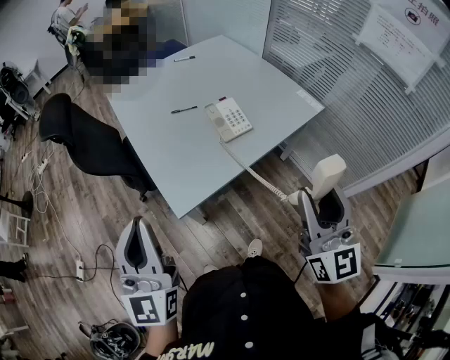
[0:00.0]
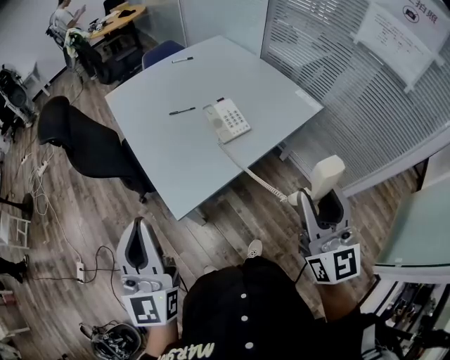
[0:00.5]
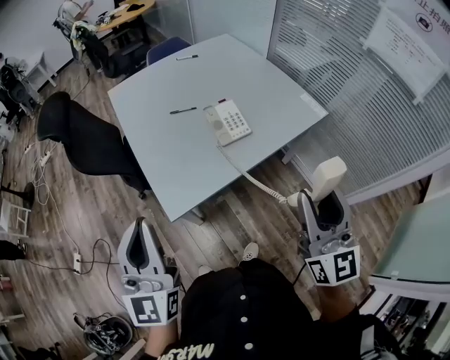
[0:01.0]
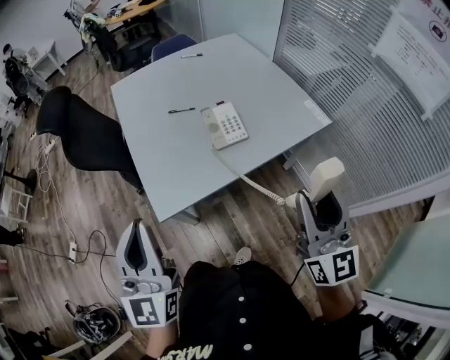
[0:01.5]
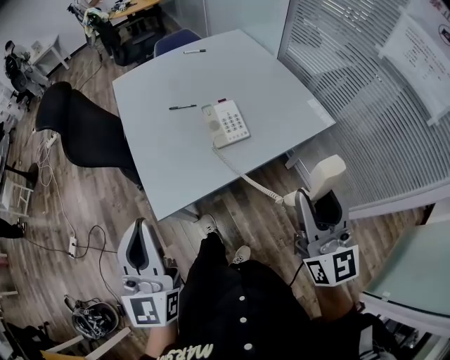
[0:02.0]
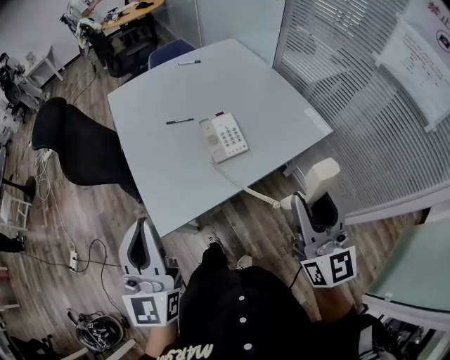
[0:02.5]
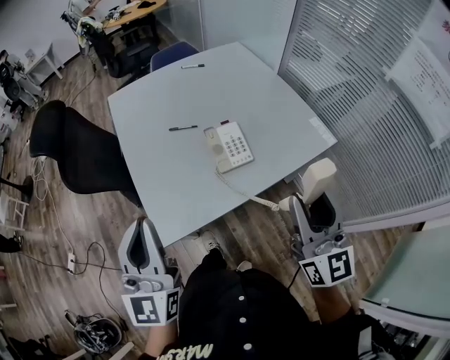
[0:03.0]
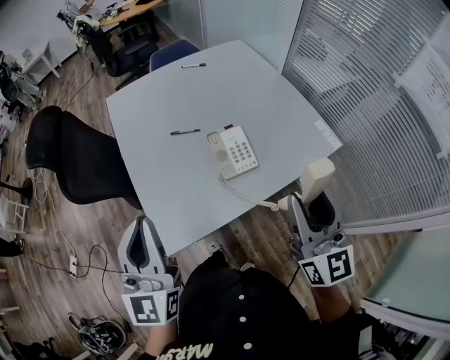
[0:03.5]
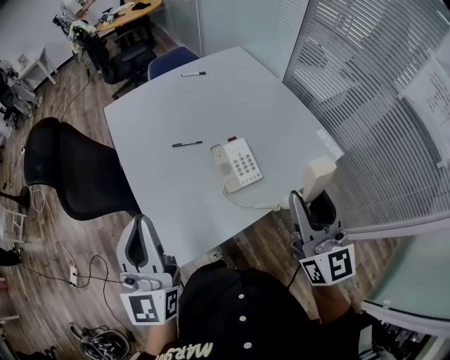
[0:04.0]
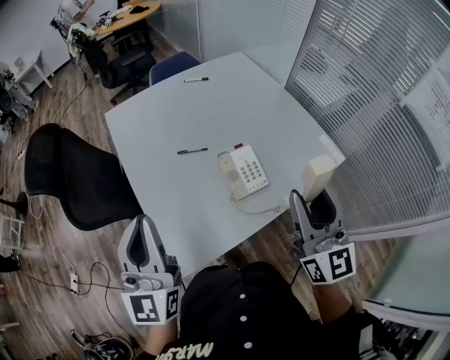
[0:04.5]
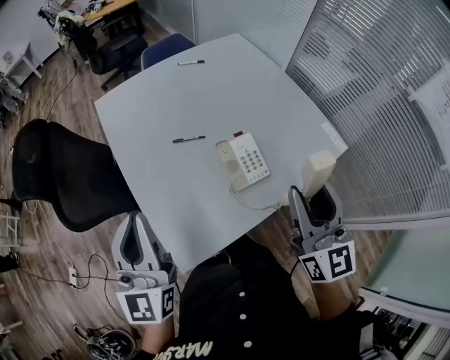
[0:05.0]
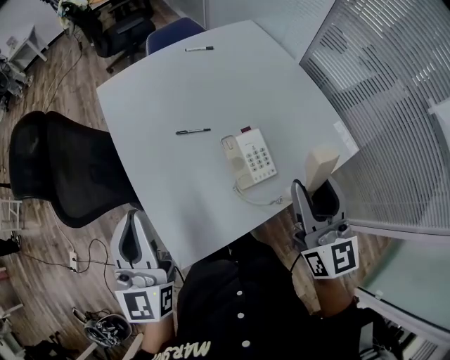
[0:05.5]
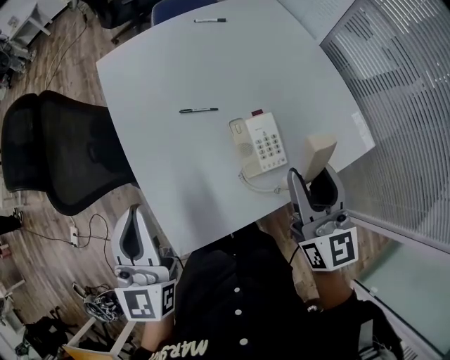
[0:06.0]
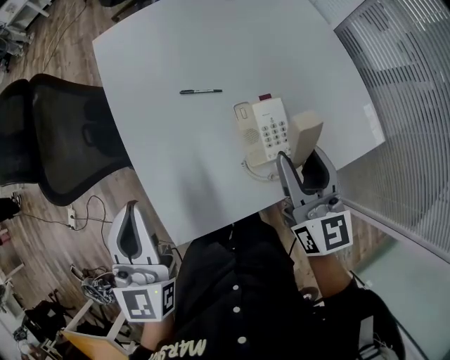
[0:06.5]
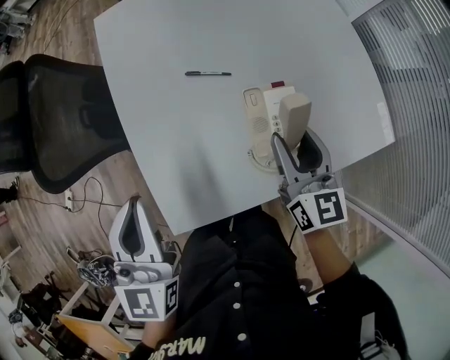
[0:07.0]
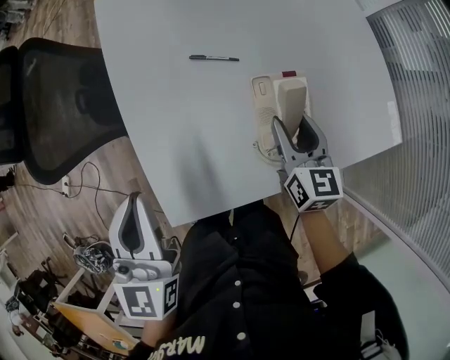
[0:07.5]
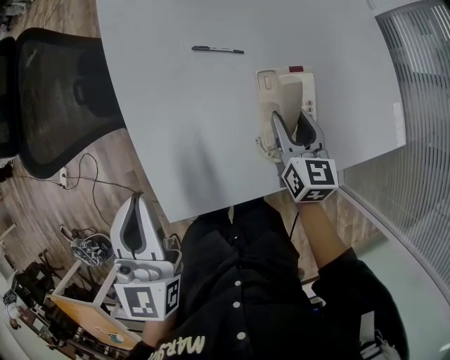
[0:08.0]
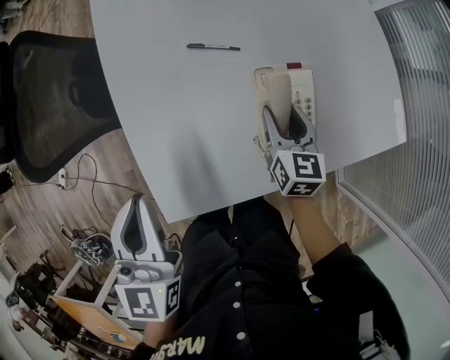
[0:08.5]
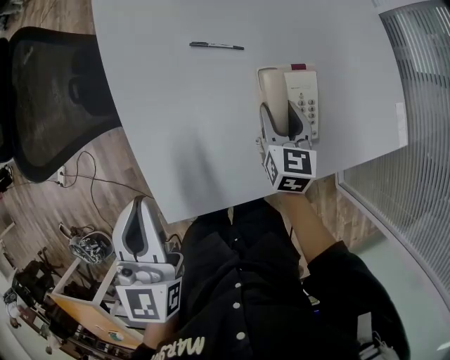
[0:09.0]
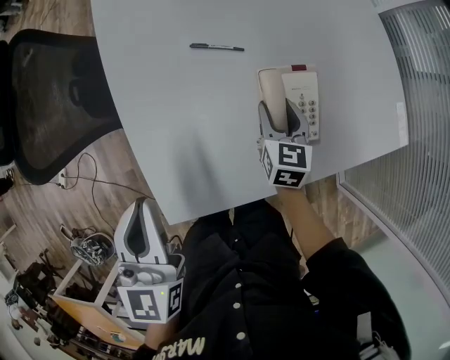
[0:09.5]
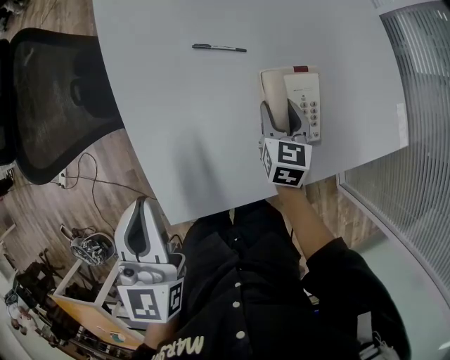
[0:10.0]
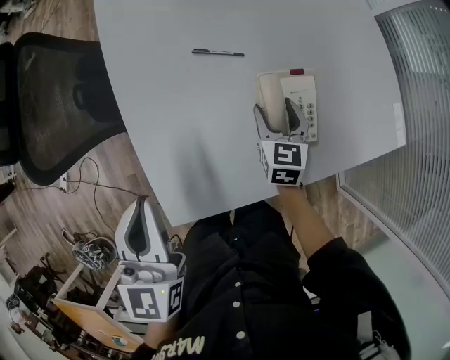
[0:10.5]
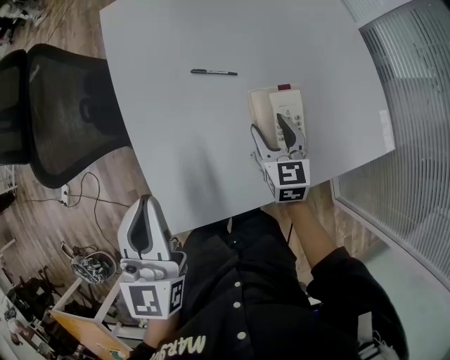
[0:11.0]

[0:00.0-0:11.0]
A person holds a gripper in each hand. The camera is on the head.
0:00.0 to 0:02.0: The left gripper heads to the right, covering about 10 cm, while the right gripper goes roughly 10 cm to the right and forward.
0:02.0 to 0:03.5: The grippers both shift forward by roughly 15 cm.
0:03.5 to 0:05.5: The right gripper goes some 15 cm forward. The left gripper goes some 15 cm forward and to the left.
0:05.5 to 0:07.5: The left gripper moves downward, about 10 cm, and swivels roughly 20 degrees; the right gripper shifts roughly 25 cm downward and forward, and turns by approximately 30 degrees.
0:07.5 to 0:09.0: The right gripper is displaced downward by about 10 cm.
0:09.0 to 0:11.0: The grippers stay close to where they were, moving slightly.

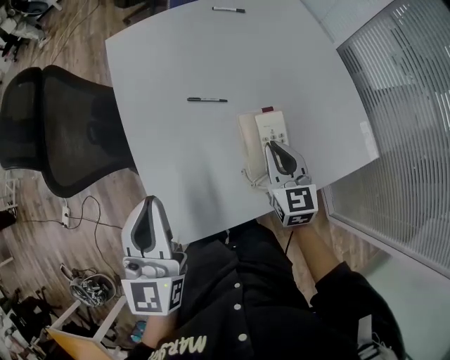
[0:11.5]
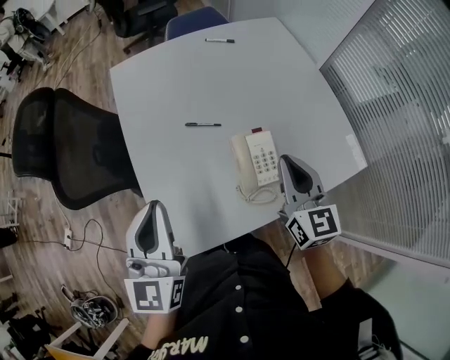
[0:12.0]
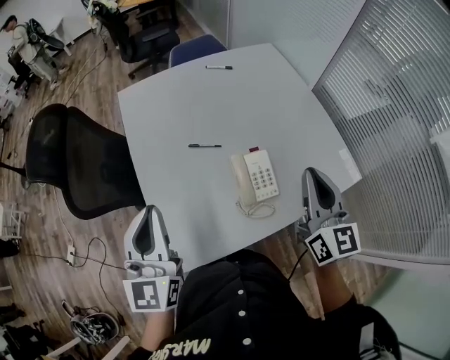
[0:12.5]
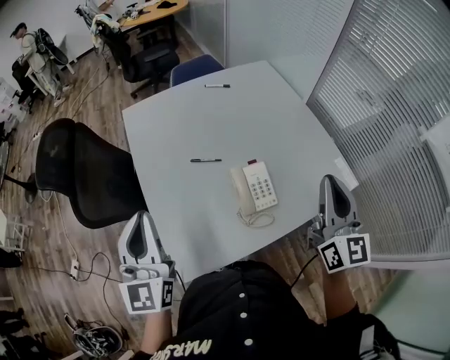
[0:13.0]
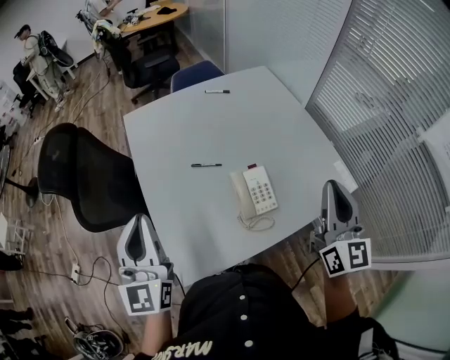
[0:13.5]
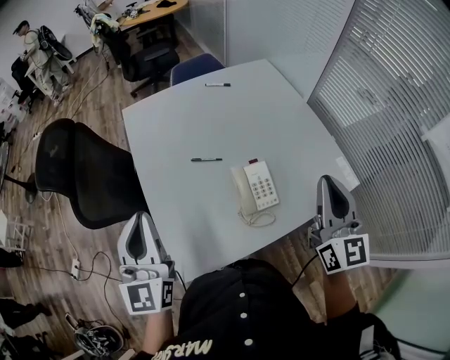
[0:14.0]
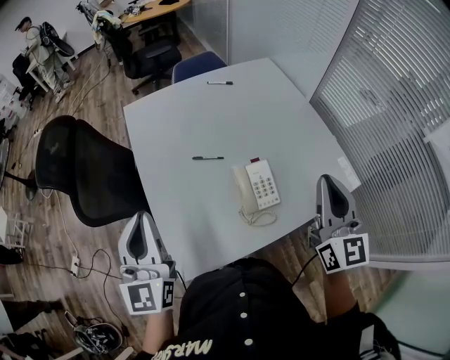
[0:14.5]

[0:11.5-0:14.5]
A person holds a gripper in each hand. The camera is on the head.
0:11.5 to 0:13.0: The left gripper heads upward, covering some 10 cm, while the right gripper is displaced upward and to the right by about 25 cm, and changes its angle by some 30 degrees.
0:13.0 to 0:14.5: The grippers make only small movements.

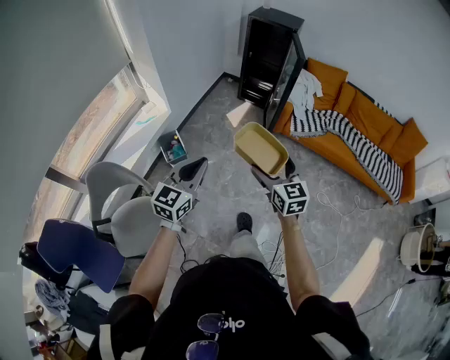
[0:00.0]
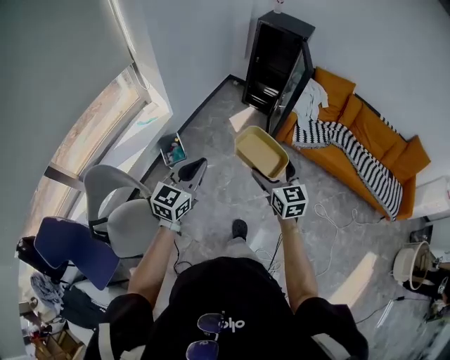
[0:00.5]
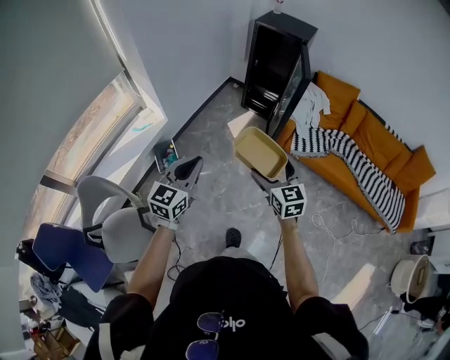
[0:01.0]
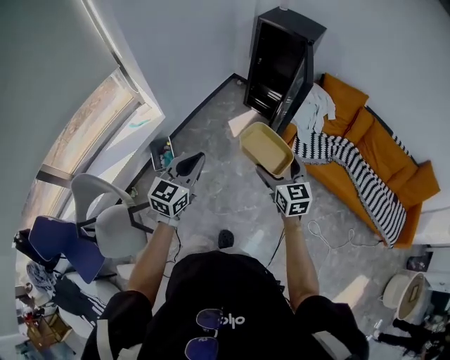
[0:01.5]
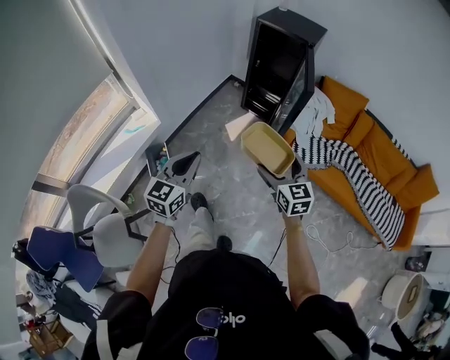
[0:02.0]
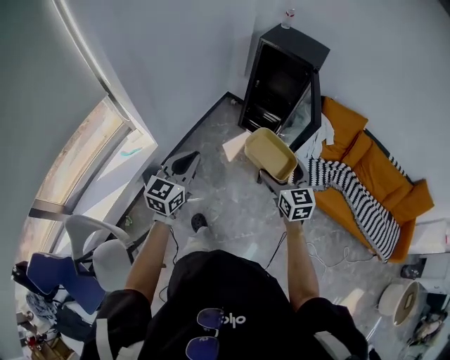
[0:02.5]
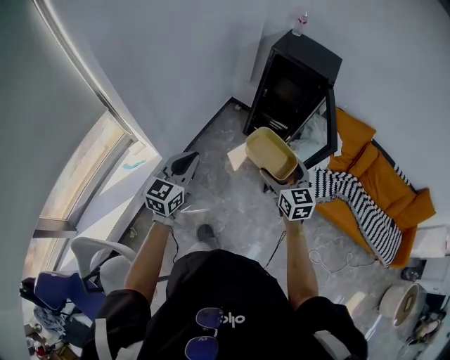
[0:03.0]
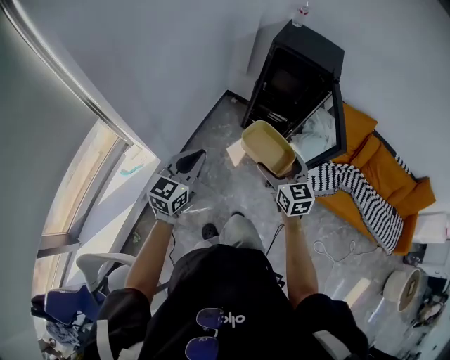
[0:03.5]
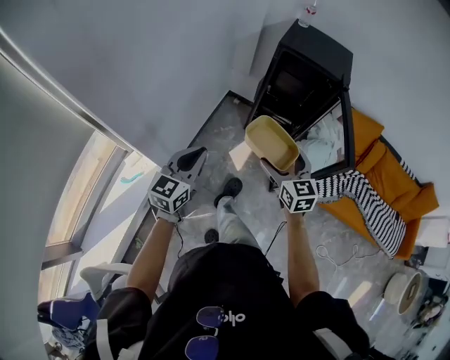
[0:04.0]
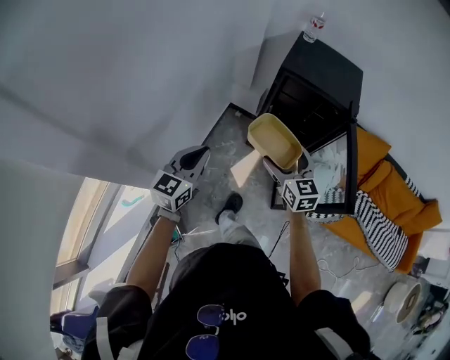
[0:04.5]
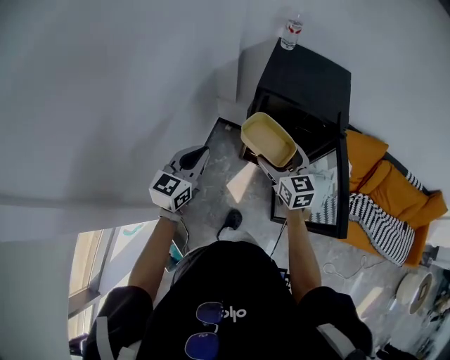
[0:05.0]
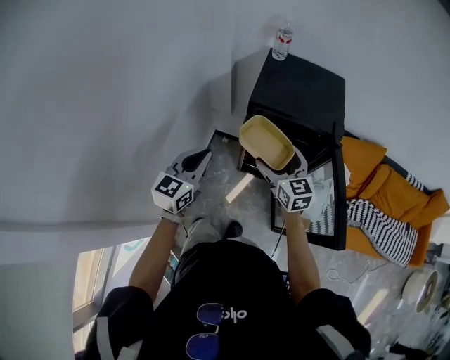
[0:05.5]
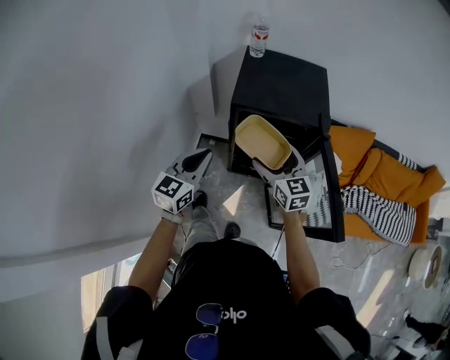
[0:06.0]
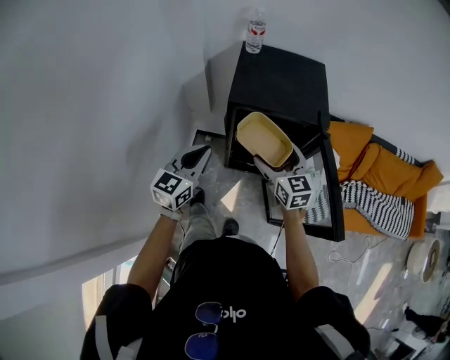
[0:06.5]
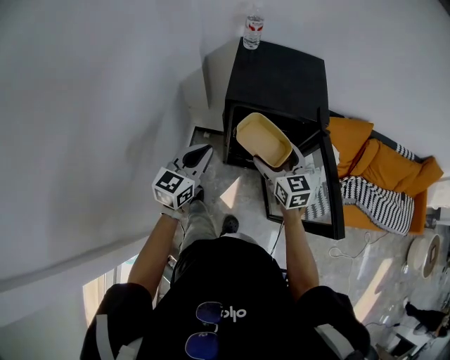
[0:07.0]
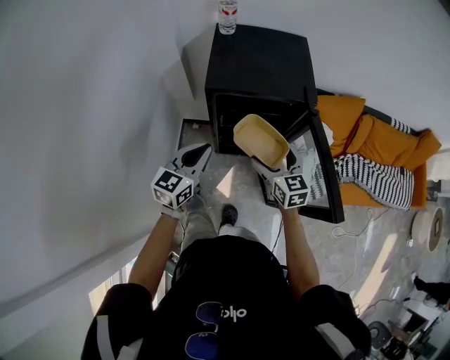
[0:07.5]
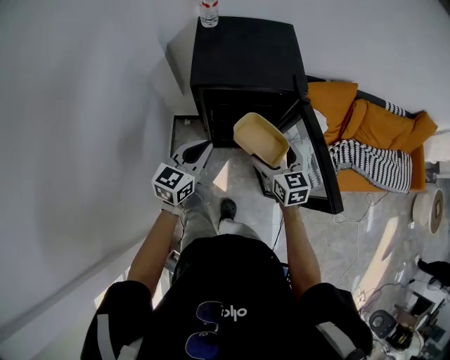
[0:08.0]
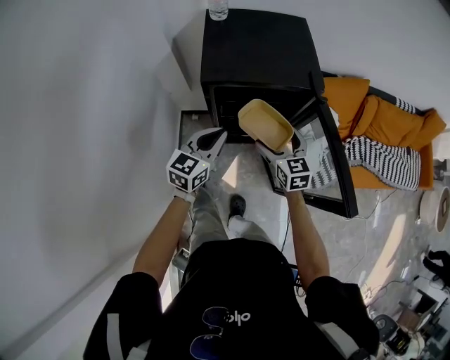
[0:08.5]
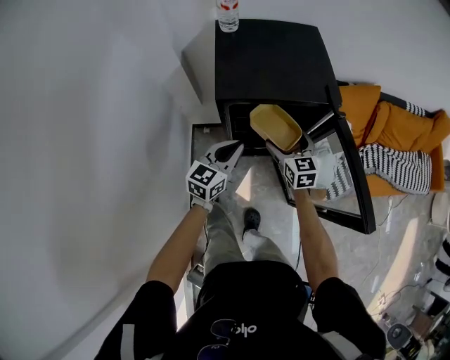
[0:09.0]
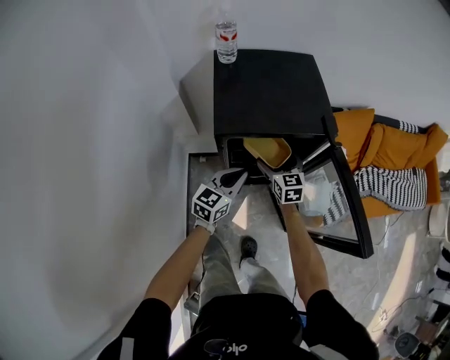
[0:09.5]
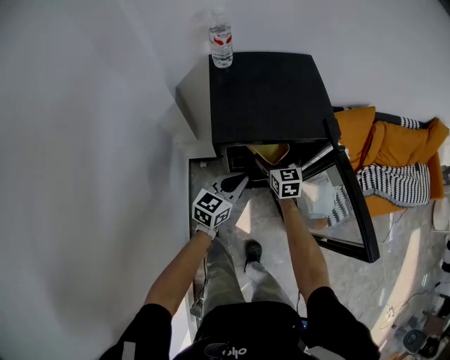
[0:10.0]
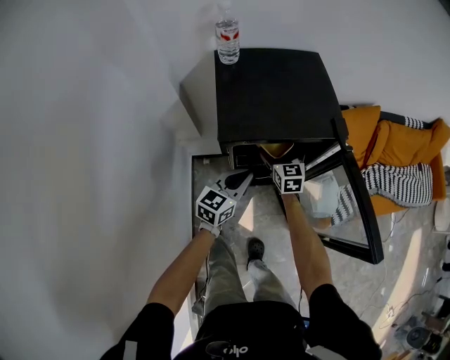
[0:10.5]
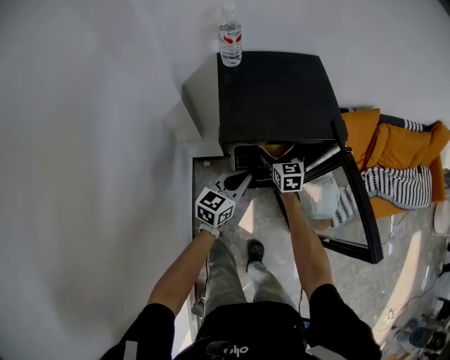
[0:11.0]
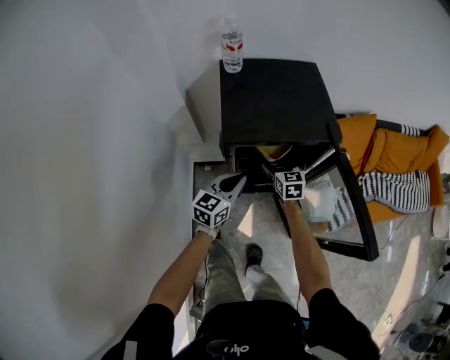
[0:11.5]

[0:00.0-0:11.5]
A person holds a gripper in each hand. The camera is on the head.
0:00.0 to 0:02.0: The left gripper shifts some 30 cm forward. The right gripper travels forward and to the right by some 35 cm.
0:02.0 to 0:04.0: Both grippers are carried forward and to the left, roughly 40 cm.
0:04.0 to 0:06.0: The two grippers go some 40 cm forward.
0:06.0 to 0:07.5: The right gripper goes some 10 cm downward and to the right. The left gripper moves to the right, roughly 5 cm.
0:07.5 to 0:09.5: The right gripper is displaced forward and downward by approximately 20 cm, while the left gripper is displaced downward and forward by about 15 cm.

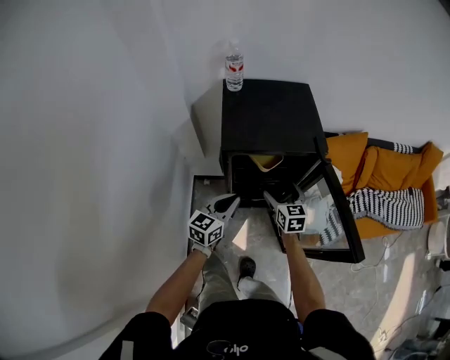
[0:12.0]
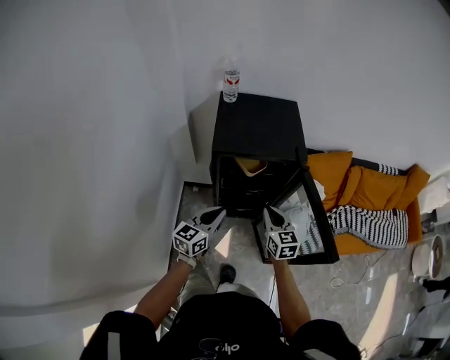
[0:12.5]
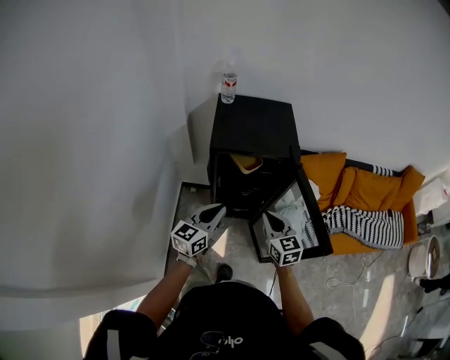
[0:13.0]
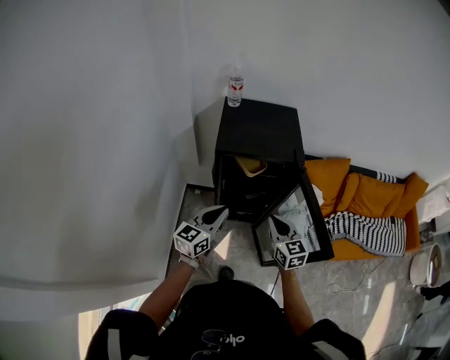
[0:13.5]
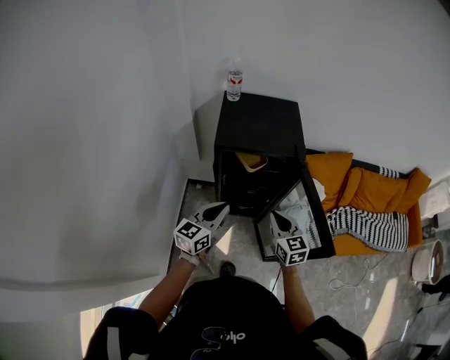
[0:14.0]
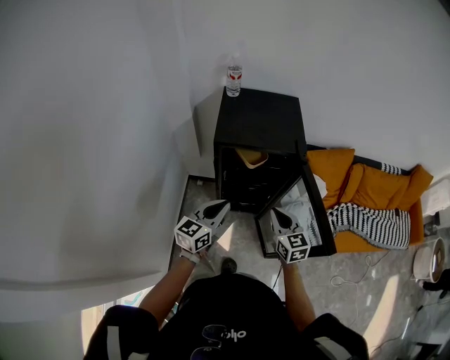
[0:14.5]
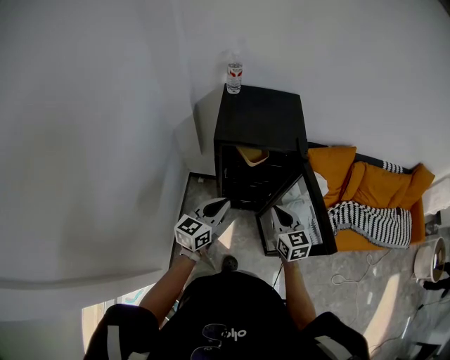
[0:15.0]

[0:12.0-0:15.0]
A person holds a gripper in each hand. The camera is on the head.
0:12.0 to 0:13.5: The two grippers go about 15 cm backward and upward. The right gripper closes its fingers.
0:13.5 to 0:15.0: The grippers stay close to where they were, moving slightly.
